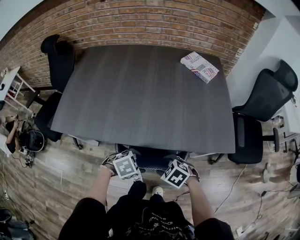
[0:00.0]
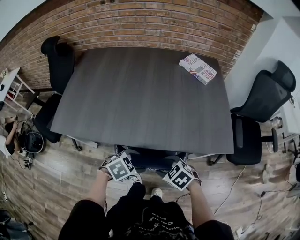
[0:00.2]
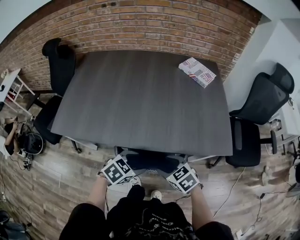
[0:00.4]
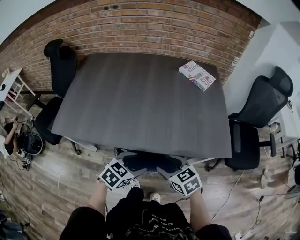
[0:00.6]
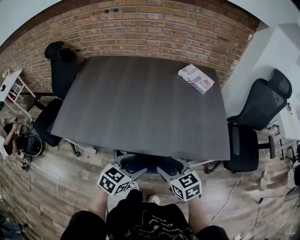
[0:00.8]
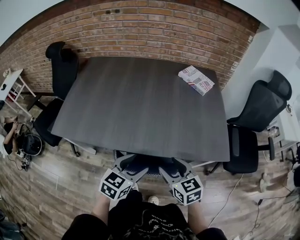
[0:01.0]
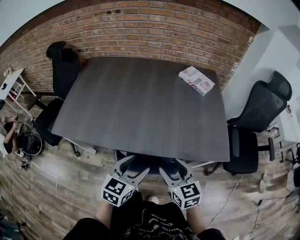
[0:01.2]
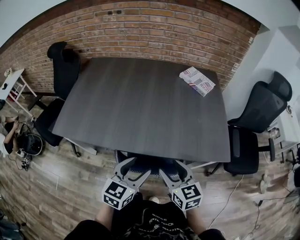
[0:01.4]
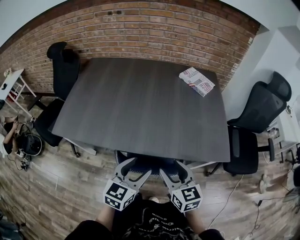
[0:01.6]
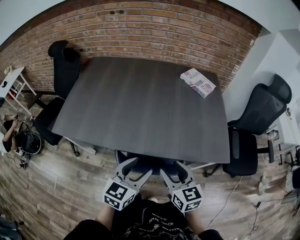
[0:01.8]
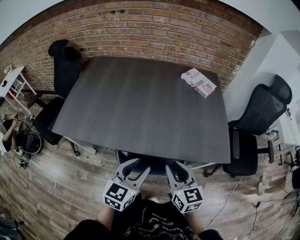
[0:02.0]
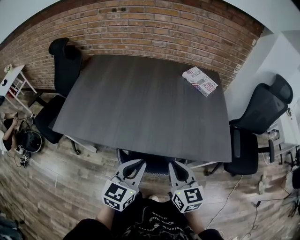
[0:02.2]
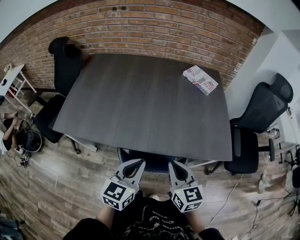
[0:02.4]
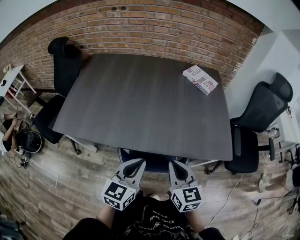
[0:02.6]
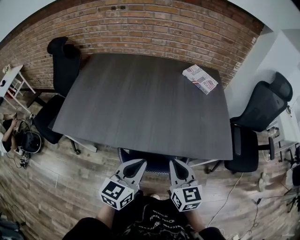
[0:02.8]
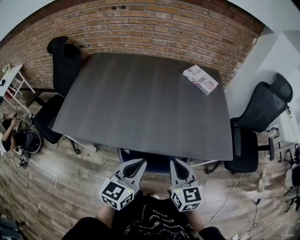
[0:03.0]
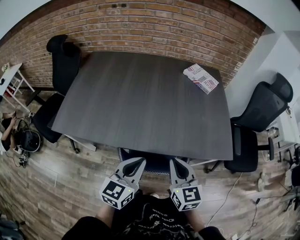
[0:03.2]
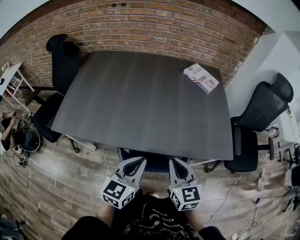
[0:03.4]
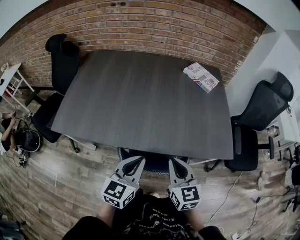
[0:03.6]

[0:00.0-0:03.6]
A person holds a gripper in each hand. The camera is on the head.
0:00.0 to 0:01.8: The grippers both shift upward by about 15 cm. The right gripper tilts its fingers roughly 40 degrees upward; the left gripper points its fingers roughly 40 degrees further upward.
0:01.8 to 0:03.6: The right gripper closes its fingers, while the left gripper closes up.

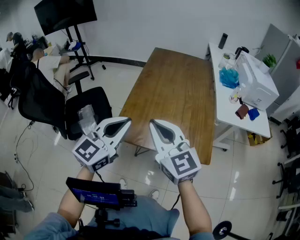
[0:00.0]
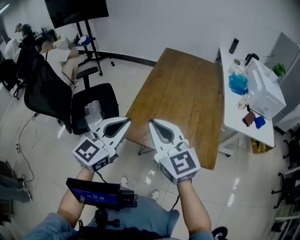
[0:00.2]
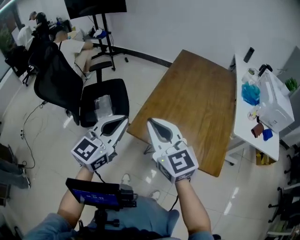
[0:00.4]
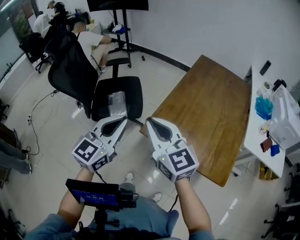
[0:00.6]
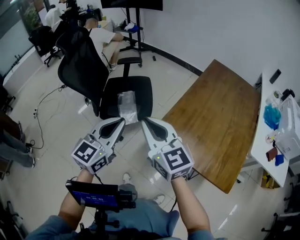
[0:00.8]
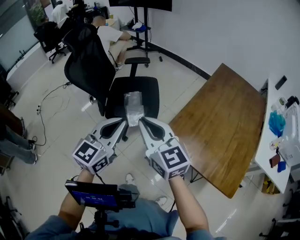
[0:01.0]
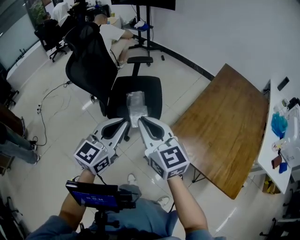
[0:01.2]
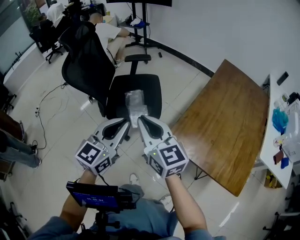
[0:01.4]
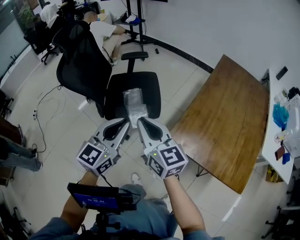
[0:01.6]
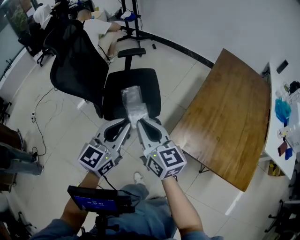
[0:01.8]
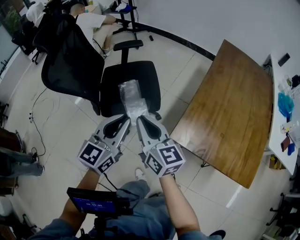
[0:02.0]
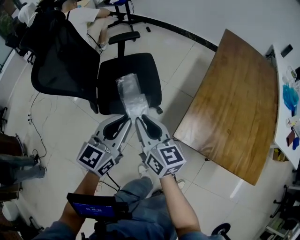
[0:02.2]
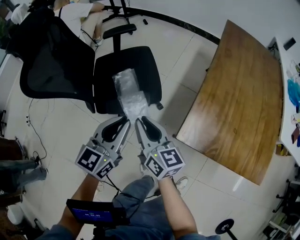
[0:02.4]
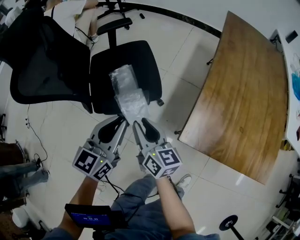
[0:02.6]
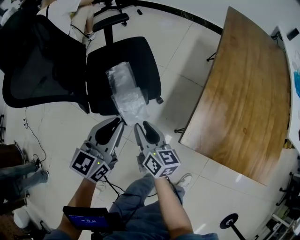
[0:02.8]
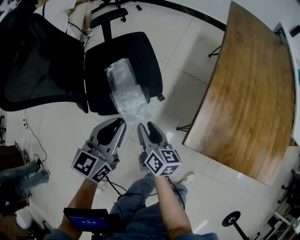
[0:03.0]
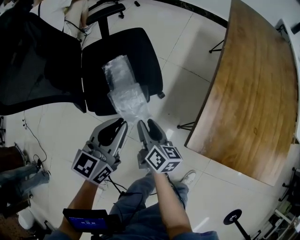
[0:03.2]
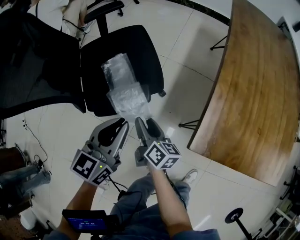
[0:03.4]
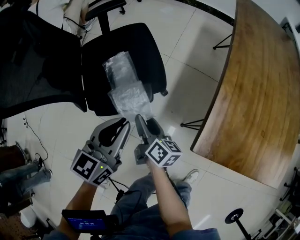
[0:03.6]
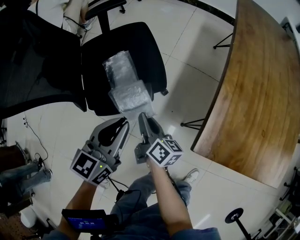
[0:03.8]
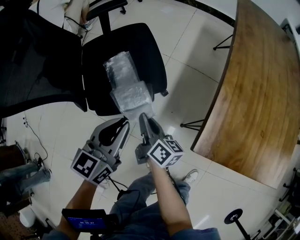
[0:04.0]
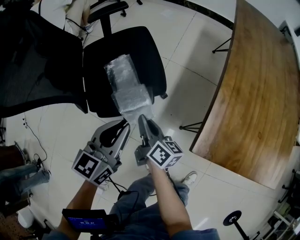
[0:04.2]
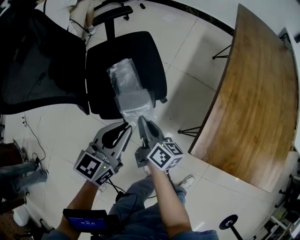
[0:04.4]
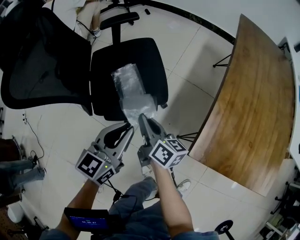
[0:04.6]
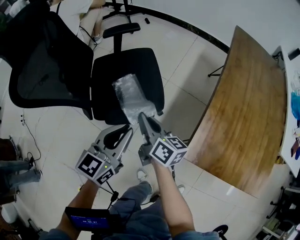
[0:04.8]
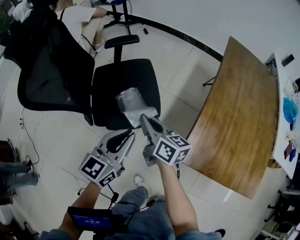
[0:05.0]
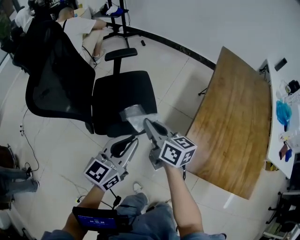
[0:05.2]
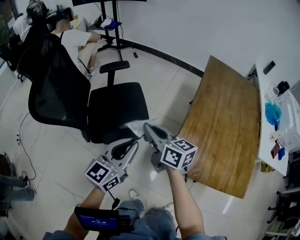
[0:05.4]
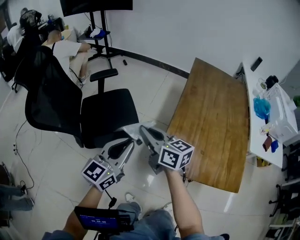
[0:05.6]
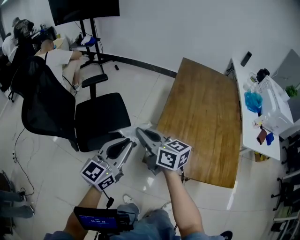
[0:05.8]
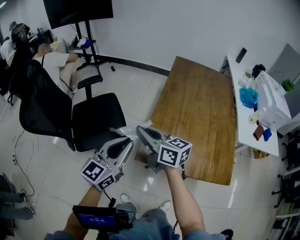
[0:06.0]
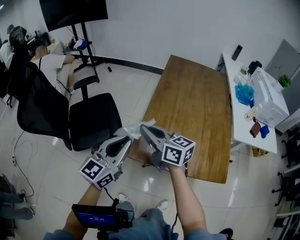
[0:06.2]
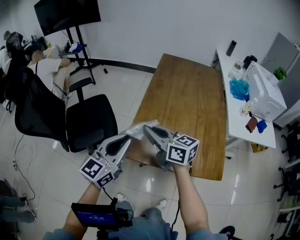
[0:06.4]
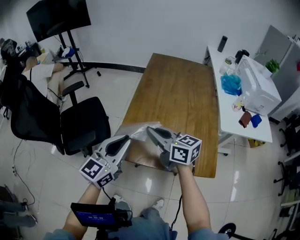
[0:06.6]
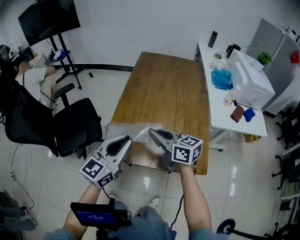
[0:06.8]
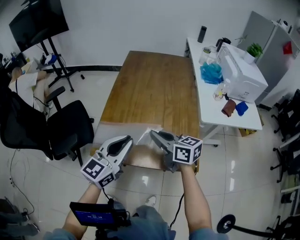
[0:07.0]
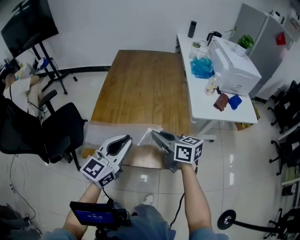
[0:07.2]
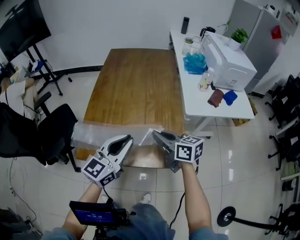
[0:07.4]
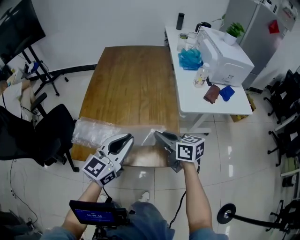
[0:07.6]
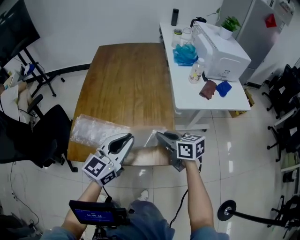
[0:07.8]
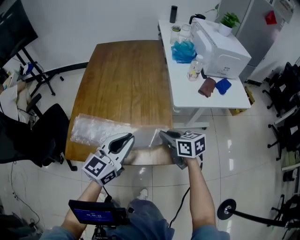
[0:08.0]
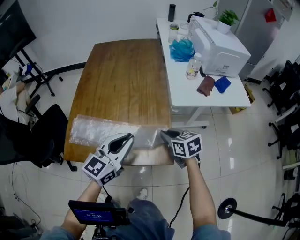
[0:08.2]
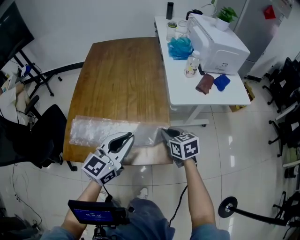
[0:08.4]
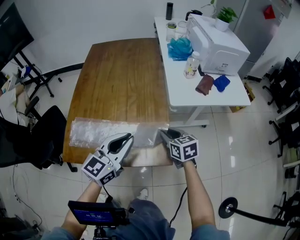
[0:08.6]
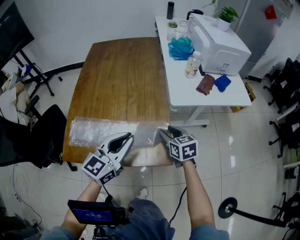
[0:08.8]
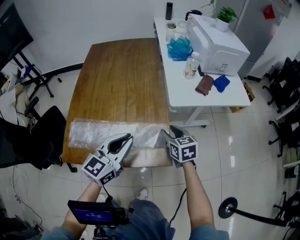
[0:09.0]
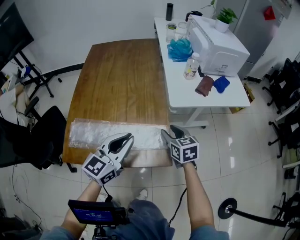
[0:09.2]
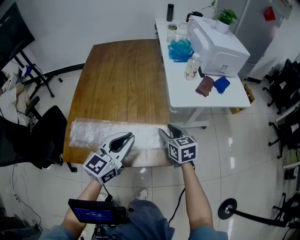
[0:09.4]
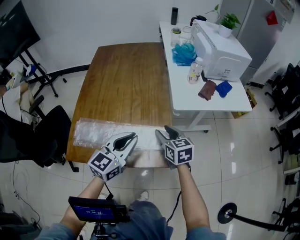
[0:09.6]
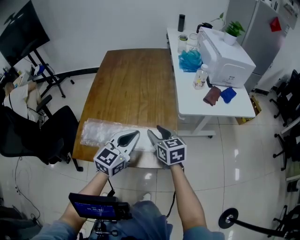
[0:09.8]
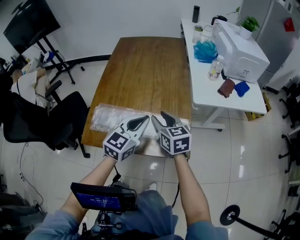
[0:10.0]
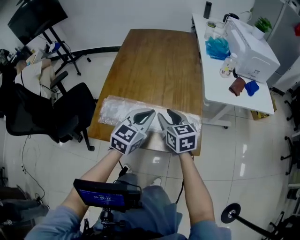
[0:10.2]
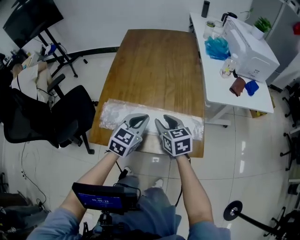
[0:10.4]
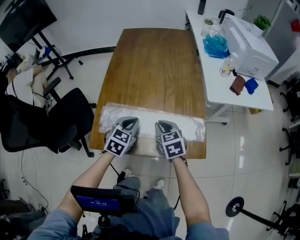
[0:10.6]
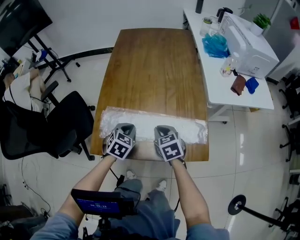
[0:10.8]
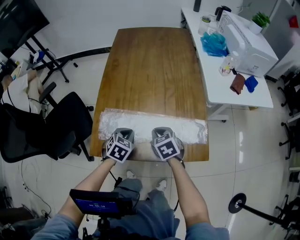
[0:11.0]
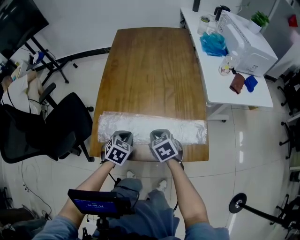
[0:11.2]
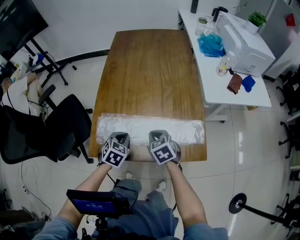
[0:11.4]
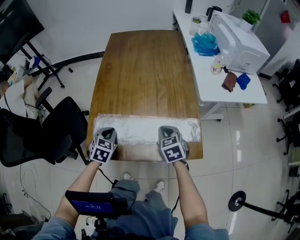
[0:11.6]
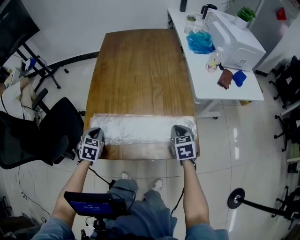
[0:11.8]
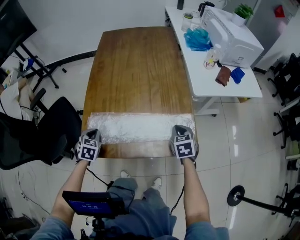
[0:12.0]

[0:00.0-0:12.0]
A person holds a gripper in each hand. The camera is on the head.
0:00.0 to 0:01.6: The left gripper moves about 30 cm, and rotates some 30 degrees. Meanwhile the right gripper changes place by some 35 cm, and changes its angle by approximately 20 degrees.
0:01.6 to 0:03.0: The left gripper heads downward and forward, covering some 25 cm. Meanwhile the right gripper travels downward by about 35 cm, turns by roughly 40 degrees, and opens its fingers.
0:03.0 to 0:04.4: The right gripper changes place by about 5 cm, and closes its fingers.
0:04.4 to 0:06.0: Both grippers travel together upward and to the right, approximately 30 cm. The left gripper turns by approximately 20 degrees. Meanwhile the right gripper turns by about 30 degrees.
0:06.0 to 0:07.6: The two grippers go roughly 40 cm to the right. The right gripper swivels roughly 20 degrees.
0:07.6 to 0:09.0: The left gripper goes approximately 5 cm to the right, while the right gripper shifts about 15 cm to the right and downward, rotates about 30 degrees, and opens its fingers.
0:09.0 to 0:10.4: The left gripper is displaced to the left and downward by approximately 10 cm, and swivels roughly 20 degrees. Meanwhile the right gripper moves to the left, approximately 20 cm.
0:10.4 to 0:12.0: The left gripper heads to the left and downward, covering about 25 cm, and changes its angle by some 30 degrees. Meanwhile the right gripper heads to the right and downward, covering some 15 cm, changes its angle by approximately 30 degrees, and closes.

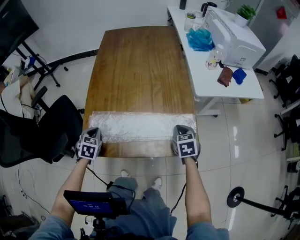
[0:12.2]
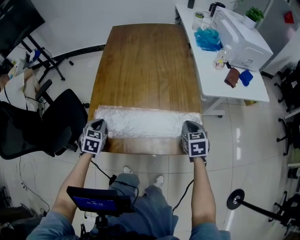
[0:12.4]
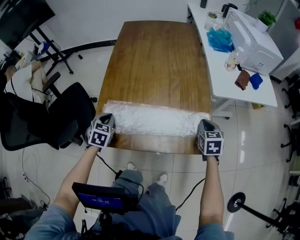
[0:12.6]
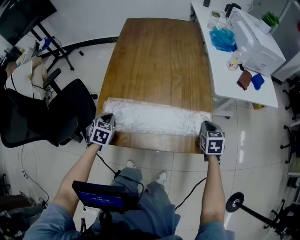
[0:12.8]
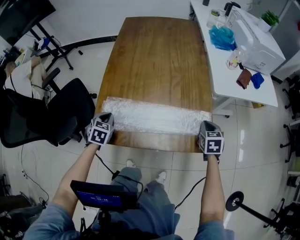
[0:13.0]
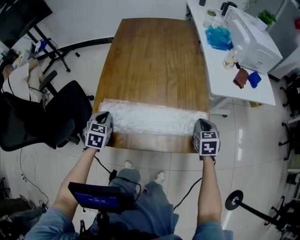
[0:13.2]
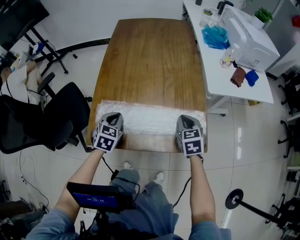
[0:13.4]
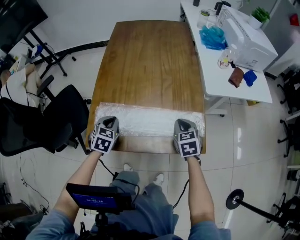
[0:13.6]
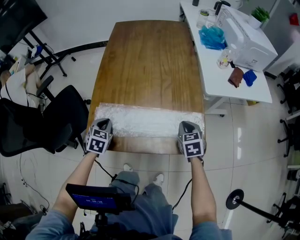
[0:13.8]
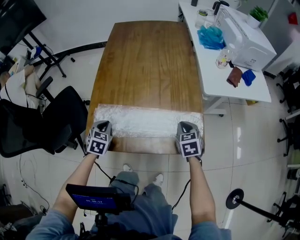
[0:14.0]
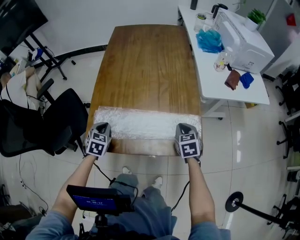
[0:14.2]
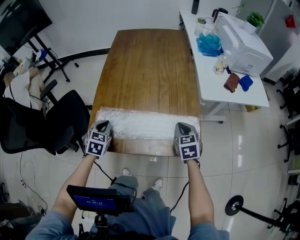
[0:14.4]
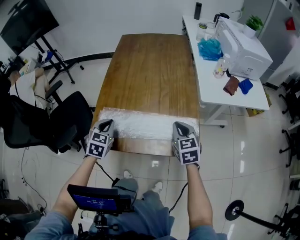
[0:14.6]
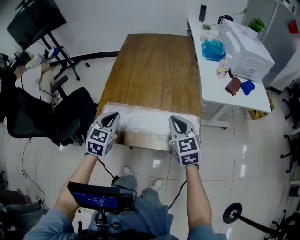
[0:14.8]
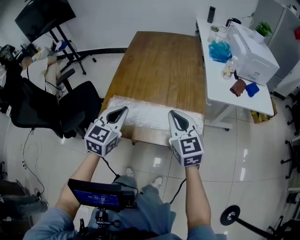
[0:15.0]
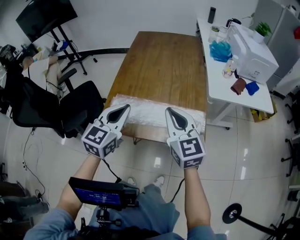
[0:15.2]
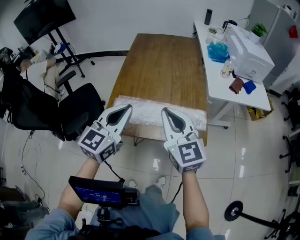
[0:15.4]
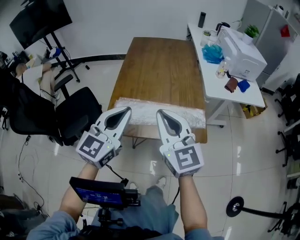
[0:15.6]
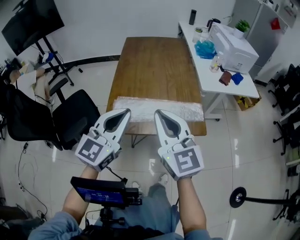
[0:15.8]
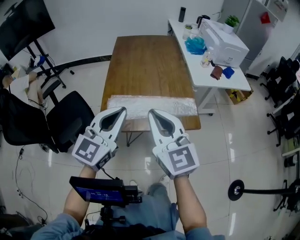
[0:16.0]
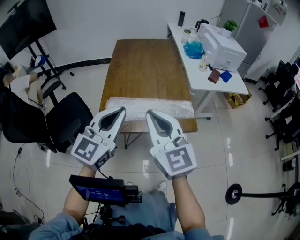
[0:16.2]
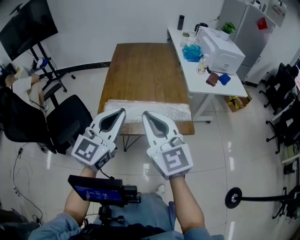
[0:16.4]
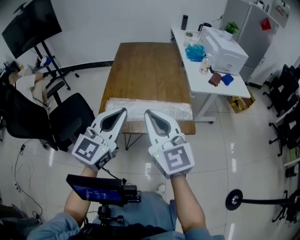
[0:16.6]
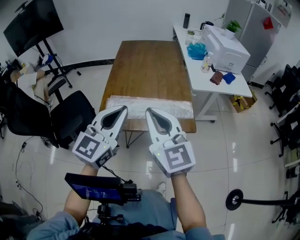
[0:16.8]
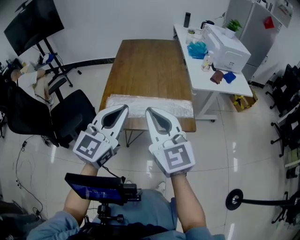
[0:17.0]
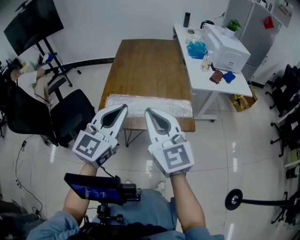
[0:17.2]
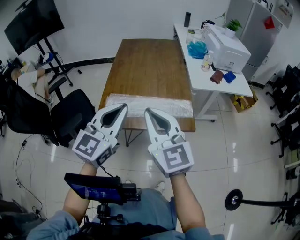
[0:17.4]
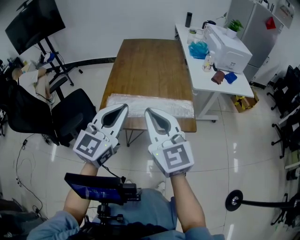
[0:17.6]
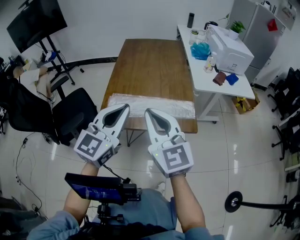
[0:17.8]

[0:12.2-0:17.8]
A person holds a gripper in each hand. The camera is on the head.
0:12.2 to 0:13.6: The left gripper travels to the right by approximately 5 cm.
0:13.6 to 0:15.0: The right gripper heads upward, covering some 20 cm, and angles its fingers upward, by approximately 30 degrees, while the left gripper moves upward and backward, roughly 20 cm, and turns by approximately 30 degrees.
0:15.0 to 0:16.4: The left gripper heads upward and backward, covering some 20 cm, and rotates roughly 30 degrees. The right gripper goes approximately 25 cm backward, upward and to the left.
0:16.4 to 0:17.8: The grippers stay close to where they were, moving slightly.

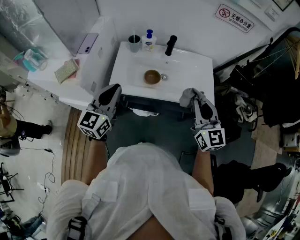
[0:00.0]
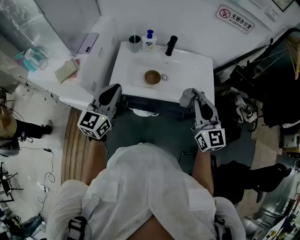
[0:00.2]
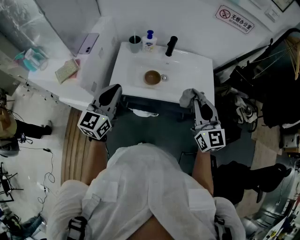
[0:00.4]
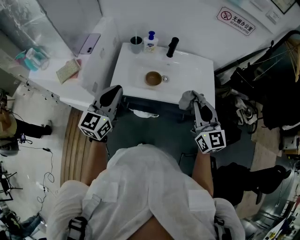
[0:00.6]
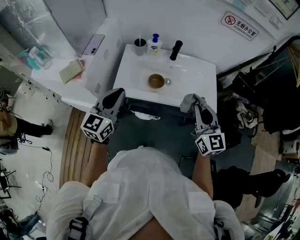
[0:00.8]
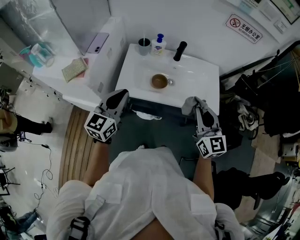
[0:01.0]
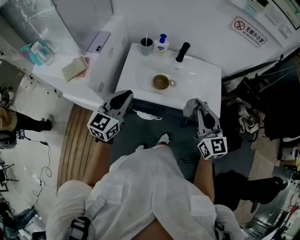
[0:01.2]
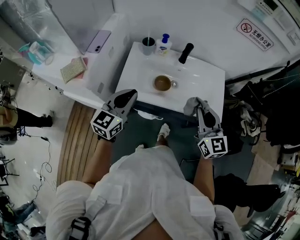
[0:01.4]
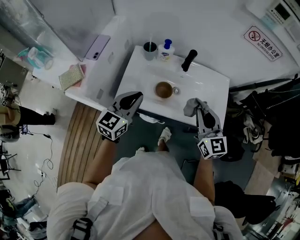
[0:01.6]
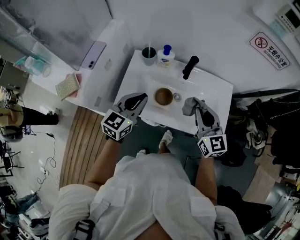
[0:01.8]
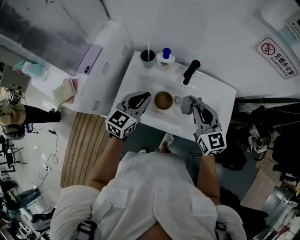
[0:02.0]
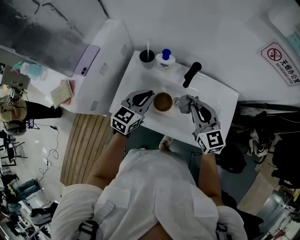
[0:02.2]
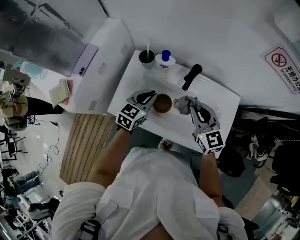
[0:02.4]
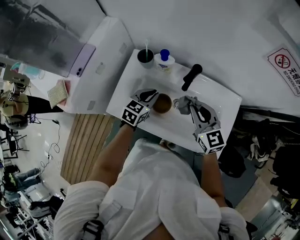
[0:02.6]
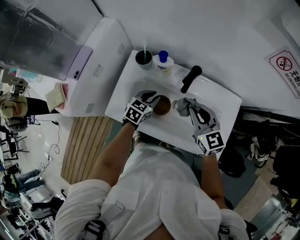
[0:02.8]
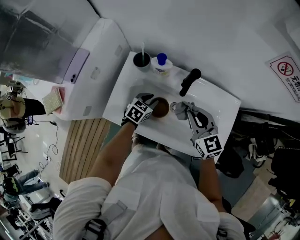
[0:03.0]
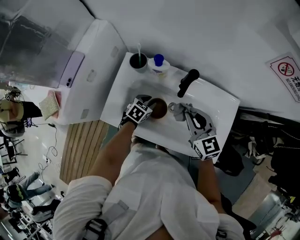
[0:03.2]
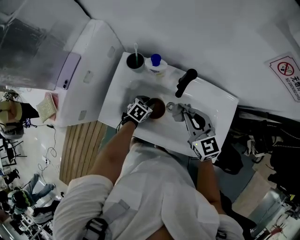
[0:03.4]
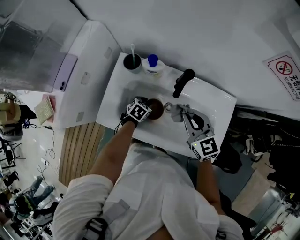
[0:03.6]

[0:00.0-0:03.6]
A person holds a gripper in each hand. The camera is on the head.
0:00.0 to 0:01.8: The left gripper travels forward and downward by about 15 cm. The right gripper moves forward, approximately 15 cm.
0:01.8 to 0:03.6: The left gripper moves downward, about 30 cm, angles its fingers downward, by about 50 degrees, and opens. Meanwhile the right gripper goes roughly 15 cm forward and downward.
